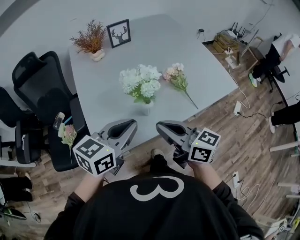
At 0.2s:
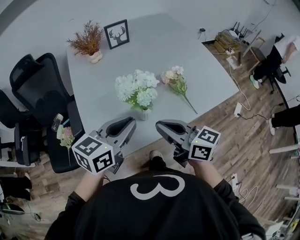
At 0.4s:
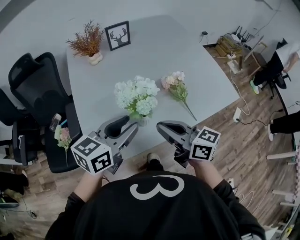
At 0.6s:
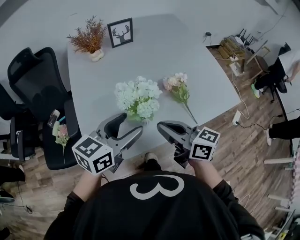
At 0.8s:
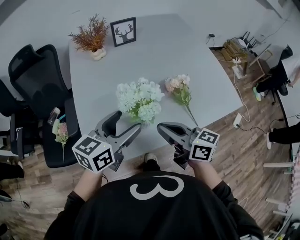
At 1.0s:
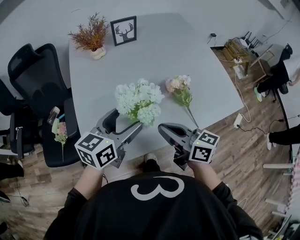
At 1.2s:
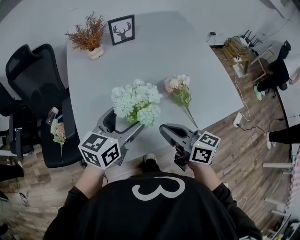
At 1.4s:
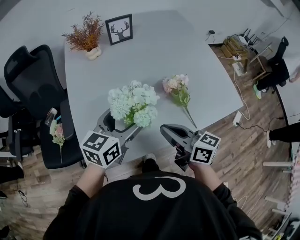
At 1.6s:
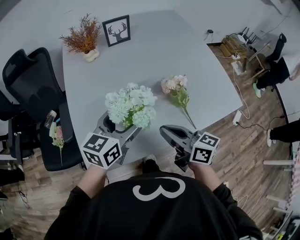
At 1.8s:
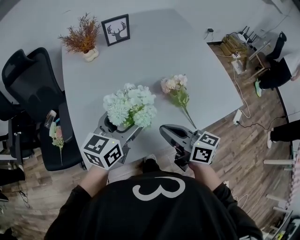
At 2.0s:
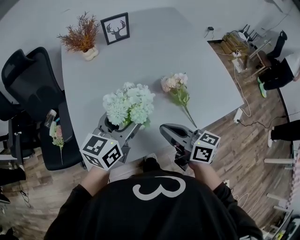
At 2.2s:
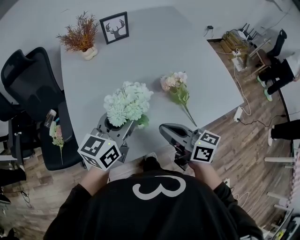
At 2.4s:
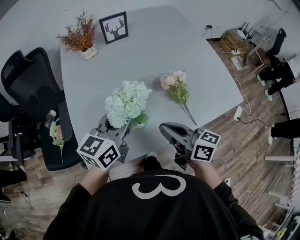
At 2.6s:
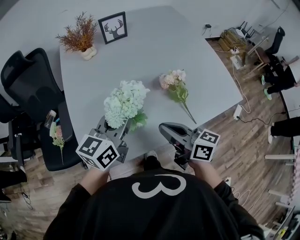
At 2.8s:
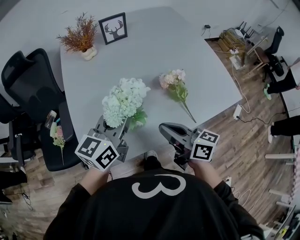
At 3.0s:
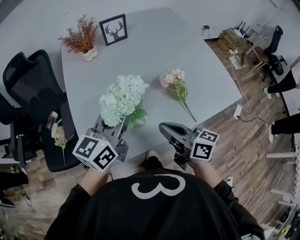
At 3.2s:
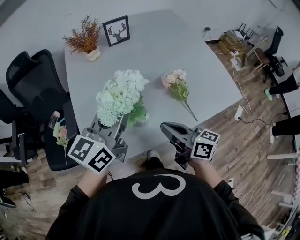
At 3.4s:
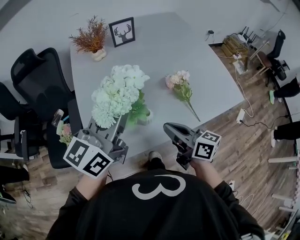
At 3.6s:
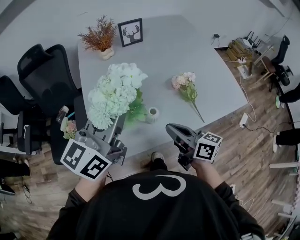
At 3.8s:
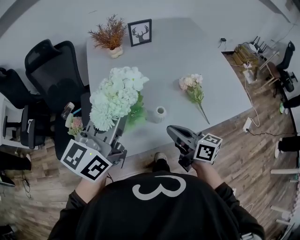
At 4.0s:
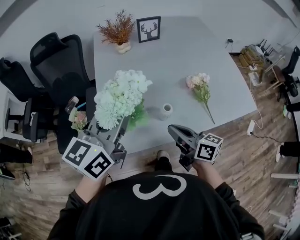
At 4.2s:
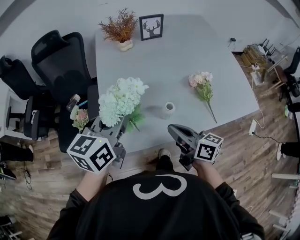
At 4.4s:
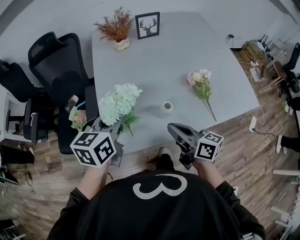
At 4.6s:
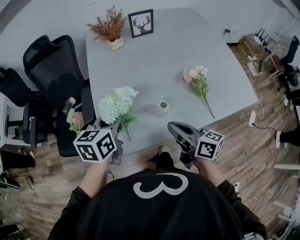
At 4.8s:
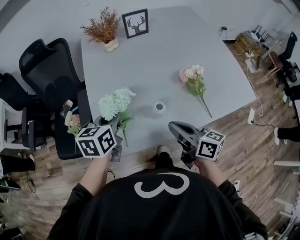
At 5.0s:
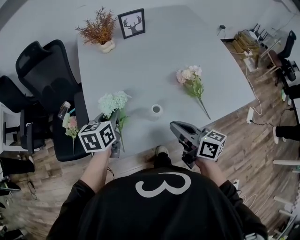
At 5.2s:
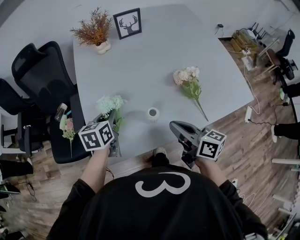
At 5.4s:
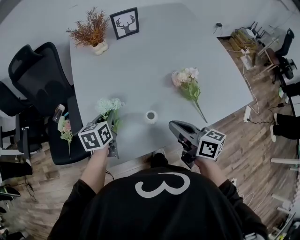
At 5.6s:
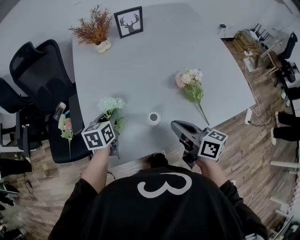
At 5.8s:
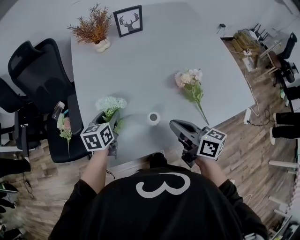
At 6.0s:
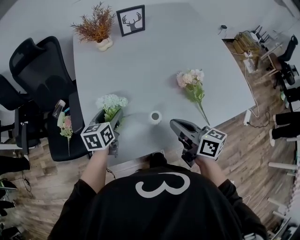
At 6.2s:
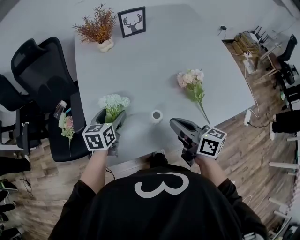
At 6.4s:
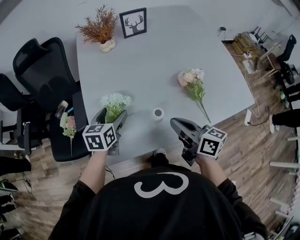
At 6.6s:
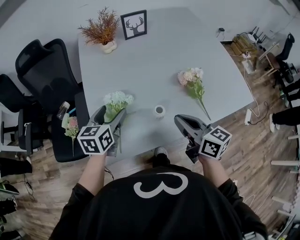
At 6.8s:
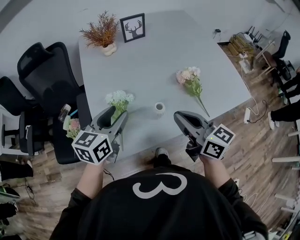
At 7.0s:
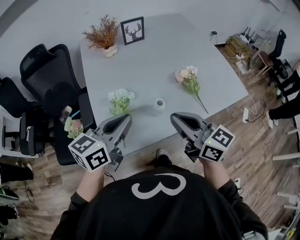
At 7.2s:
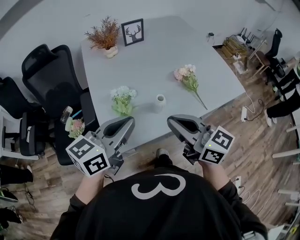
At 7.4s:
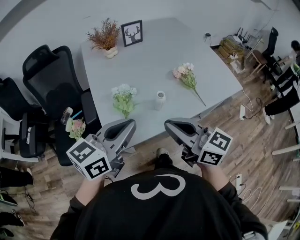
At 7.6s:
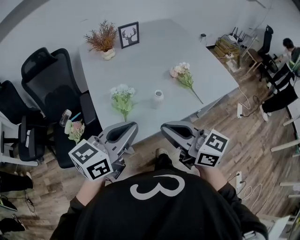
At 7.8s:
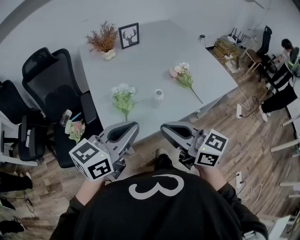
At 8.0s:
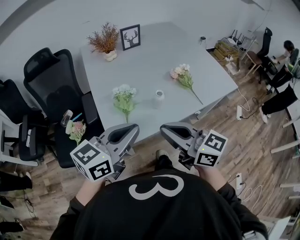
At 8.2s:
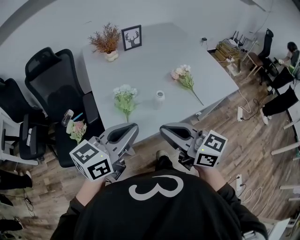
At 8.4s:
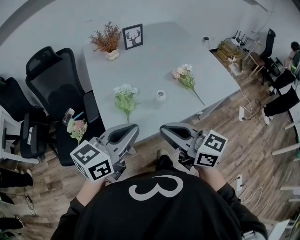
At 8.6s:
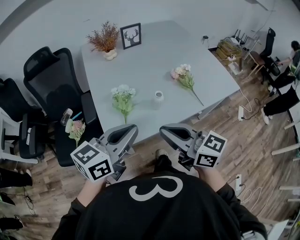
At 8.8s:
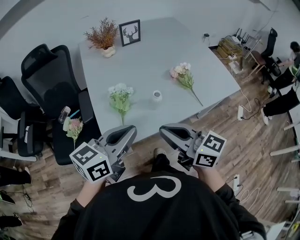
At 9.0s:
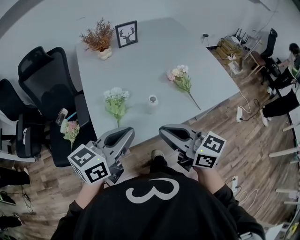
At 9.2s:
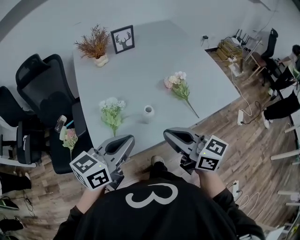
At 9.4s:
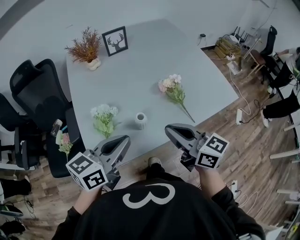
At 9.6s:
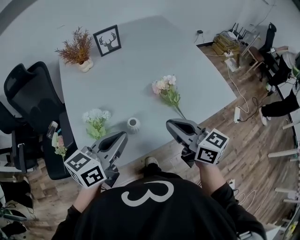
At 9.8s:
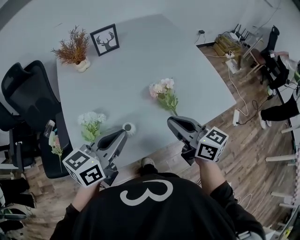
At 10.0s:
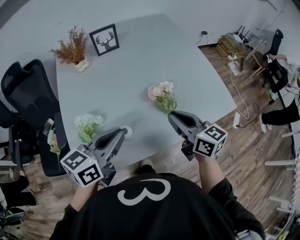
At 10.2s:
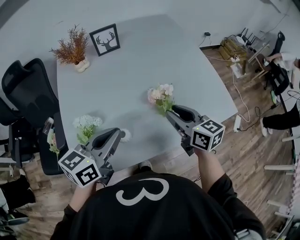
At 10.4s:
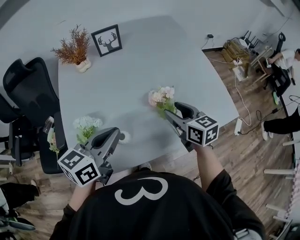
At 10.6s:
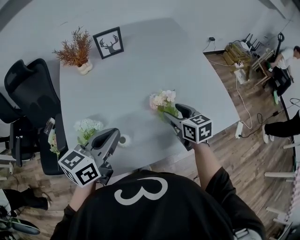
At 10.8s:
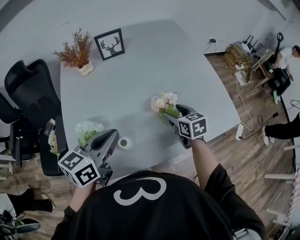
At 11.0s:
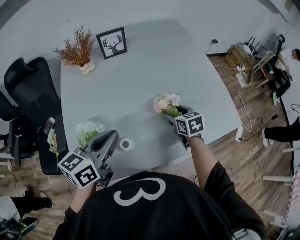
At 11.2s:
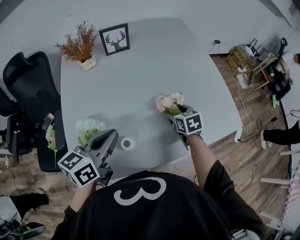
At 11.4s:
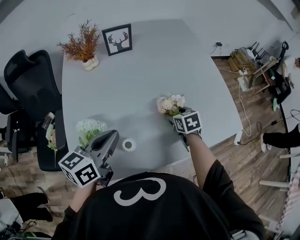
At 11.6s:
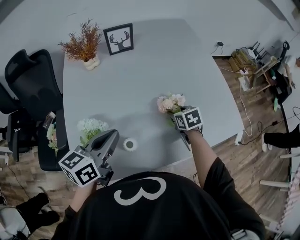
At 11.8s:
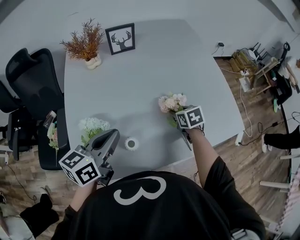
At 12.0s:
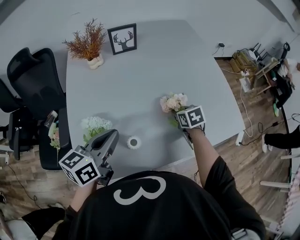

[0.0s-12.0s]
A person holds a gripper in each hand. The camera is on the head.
0.0s to 1.6s: The left gripper moves forward, roughly 15 cm, and opens up, while the right gripper travels forward, to the right and downward by roughly 15 cm.
1.6s to 3.0s: The left gripper is displaced upward by some 5 cm, and closes up.
3.0s to 4.4s: The right gripper moves to the left, roughly 5 cm. Meanwhile the left gripper moves to the left, some 15 cm, and changes its angle by roughly 20 degrees.
4.4s to 6.0s: The left gripper heads downward and forward, covering some 20 cm, and opens. The right gripper goes some 5 cm to the right.
6.0s to 7.6s: The left gripper shifts about 30 cm backward and upward, changes its angle by about 50 degrees, and closes its fingers. Meanwhile the right gripper travels backward, upward and to the left by about 25 cm, and turns by some 30 degrees.
7.6s to 9.0s: The grippers stay close to where they were, moving slightly.
9.0s to 10.4s: The right gripper shifts approximately 35 cm forward and to the right, rotates approximately 20 degrees, and opens. Meanwhile the left gripper shifts some 20 cm forward and to the right.
10.4s to 12.0s: The right gripper travels downward and forward by approximately 15 cm, and tips its fingers downward by about 30 degrees, while the left gripper is displaced to the left by approximately 5 cm.

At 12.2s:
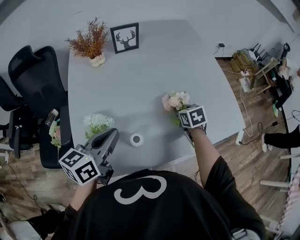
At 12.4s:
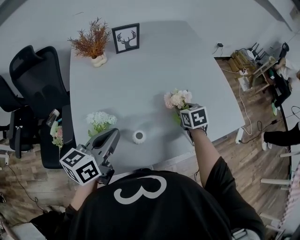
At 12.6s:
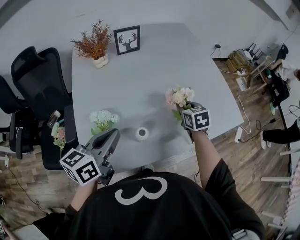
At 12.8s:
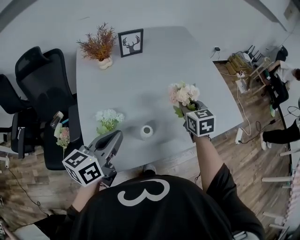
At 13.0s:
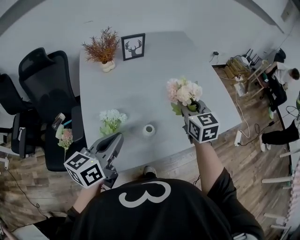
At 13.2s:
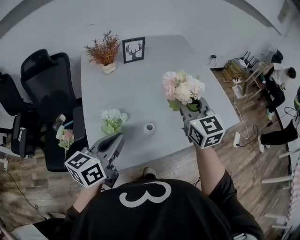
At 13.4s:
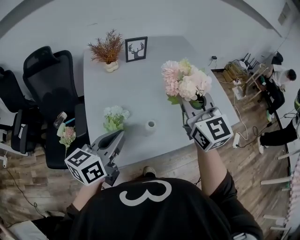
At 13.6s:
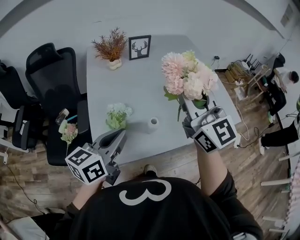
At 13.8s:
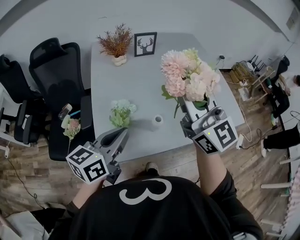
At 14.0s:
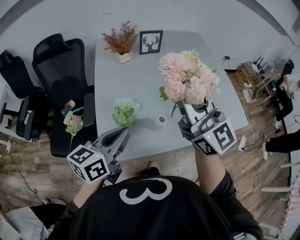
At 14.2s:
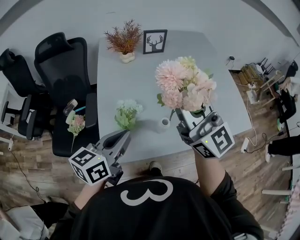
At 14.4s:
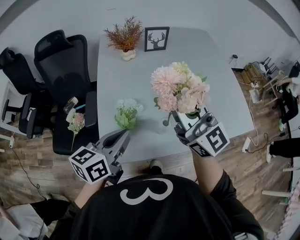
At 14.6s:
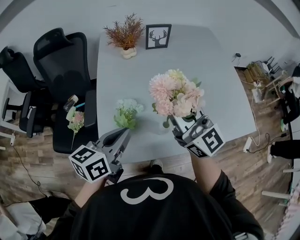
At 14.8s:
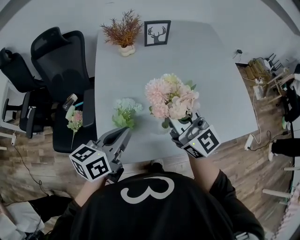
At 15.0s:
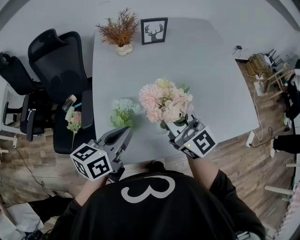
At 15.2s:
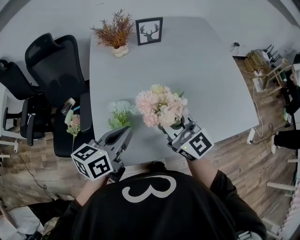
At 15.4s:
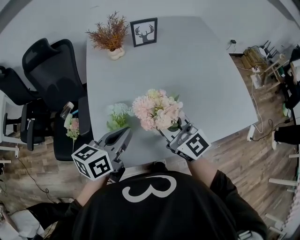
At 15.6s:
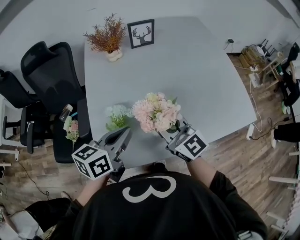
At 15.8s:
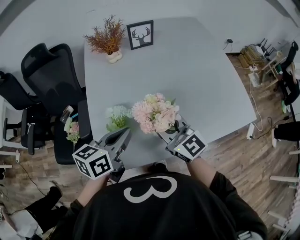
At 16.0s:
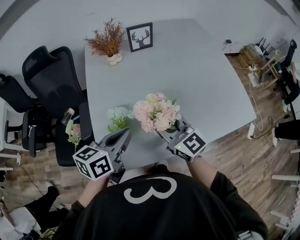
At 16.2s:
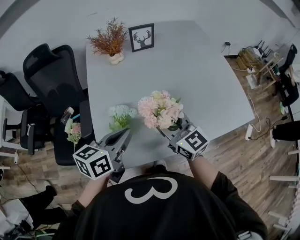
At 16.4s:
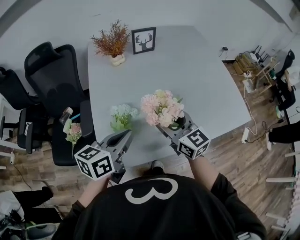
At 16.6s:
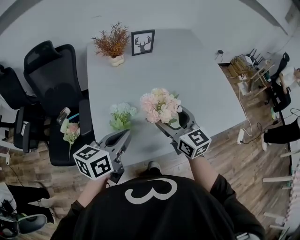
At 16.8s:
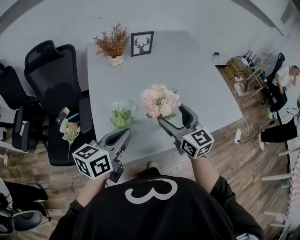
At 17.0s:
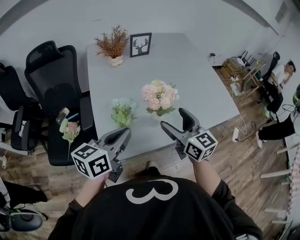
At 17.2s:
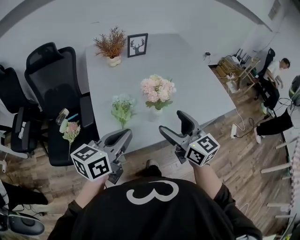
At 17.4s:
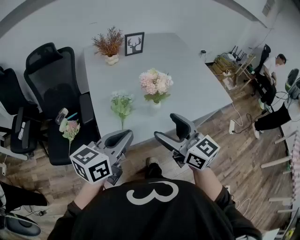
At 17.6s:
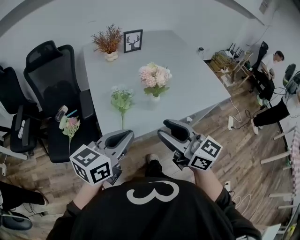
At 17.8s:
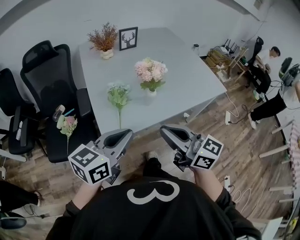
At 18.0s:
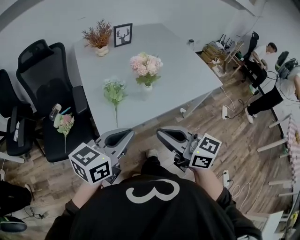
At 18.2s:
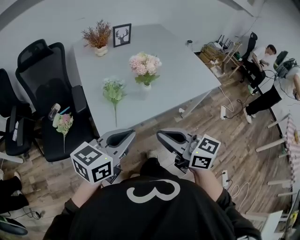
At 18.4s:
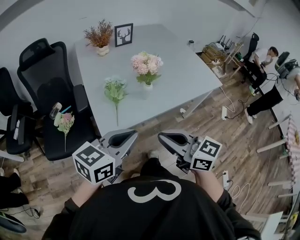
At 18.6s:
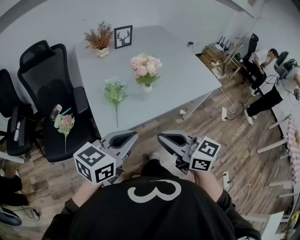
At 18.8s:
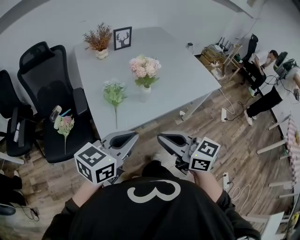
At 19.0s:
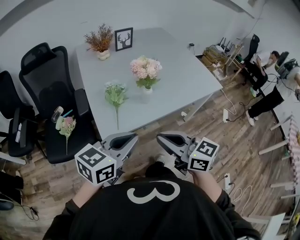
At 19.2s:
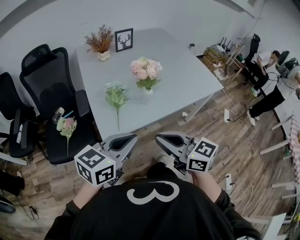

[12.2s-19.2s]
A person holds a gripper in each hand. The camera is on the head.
12.2s to 13.6s: The left gripper moves backward and upward, roughly 15 cm. Meanwhile the right gripper heads upward and backward, covering about 40 cm, and tilts its fingers approximately 60 degrees upward.
13.6s to 15.0s: The right gripper moves downward and to the left, some 15 cm, and turns by about 20 degrees. The left gripper heads downward, covering roughly 5 cm.
15.0s to 16.4s: The right gripper travels downward by some 5 cm, changes its angle by about 20 degrees, and opens up.
16.4s to 17.8s: Both grippers move backward, roughly 25 cm. The right gripper closes up. The left gripper swivels approximately 20 degrees.
17.8s to 19.2s: The grippers move only a little.

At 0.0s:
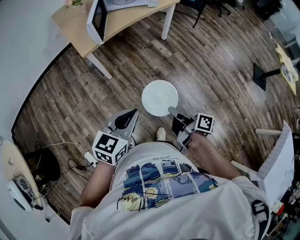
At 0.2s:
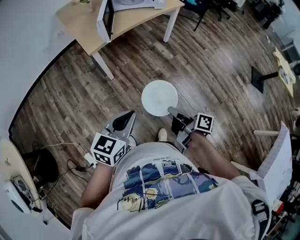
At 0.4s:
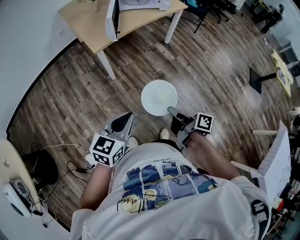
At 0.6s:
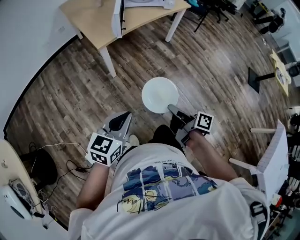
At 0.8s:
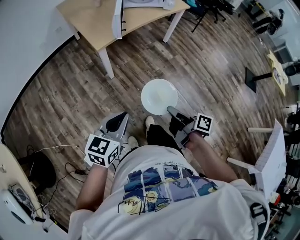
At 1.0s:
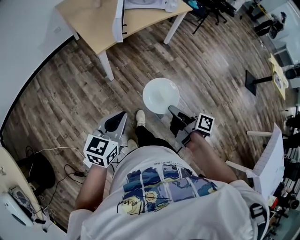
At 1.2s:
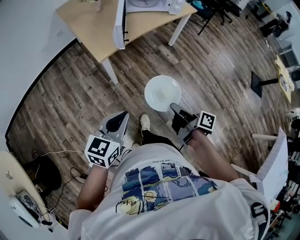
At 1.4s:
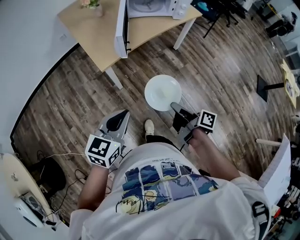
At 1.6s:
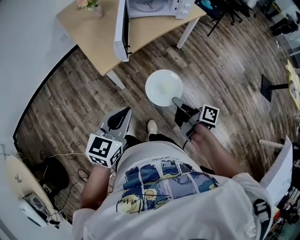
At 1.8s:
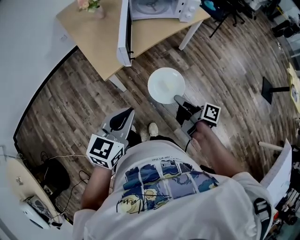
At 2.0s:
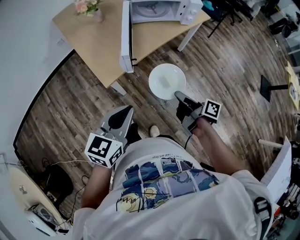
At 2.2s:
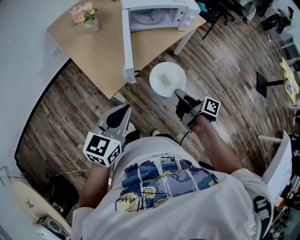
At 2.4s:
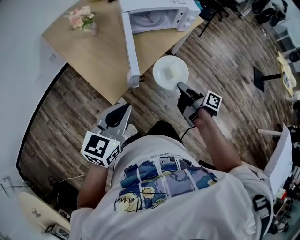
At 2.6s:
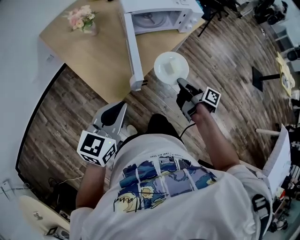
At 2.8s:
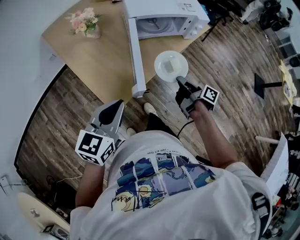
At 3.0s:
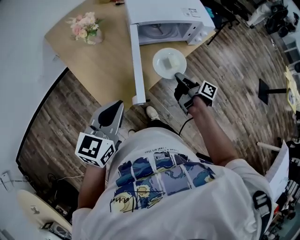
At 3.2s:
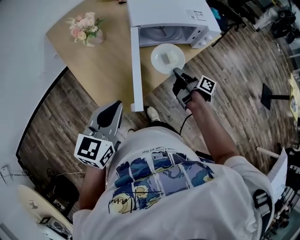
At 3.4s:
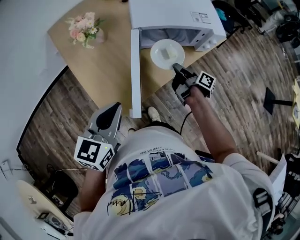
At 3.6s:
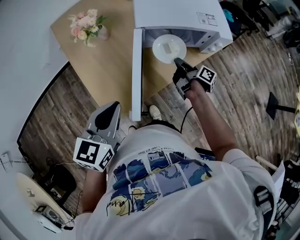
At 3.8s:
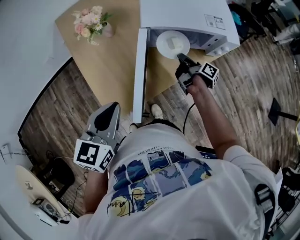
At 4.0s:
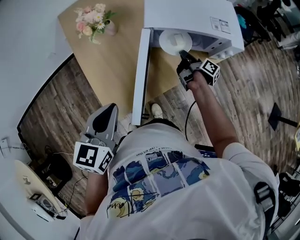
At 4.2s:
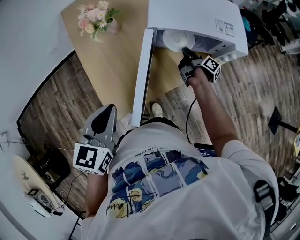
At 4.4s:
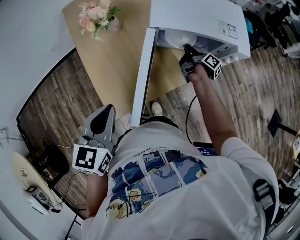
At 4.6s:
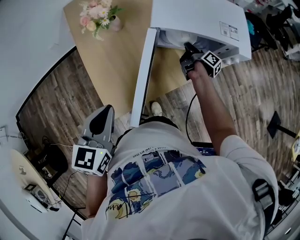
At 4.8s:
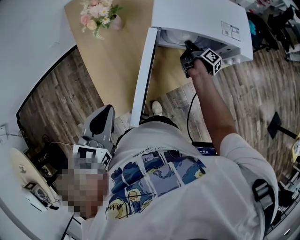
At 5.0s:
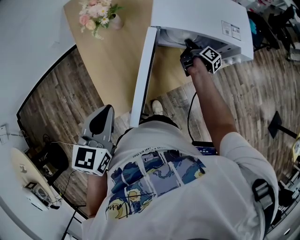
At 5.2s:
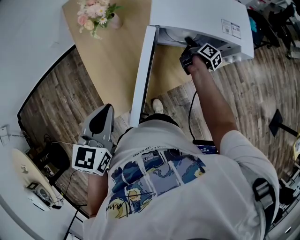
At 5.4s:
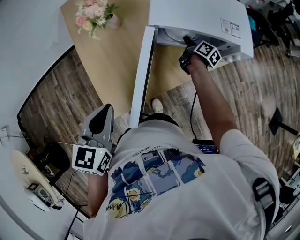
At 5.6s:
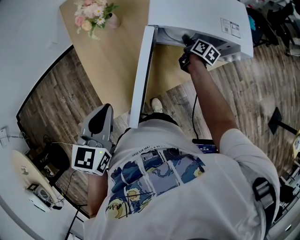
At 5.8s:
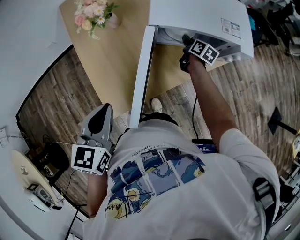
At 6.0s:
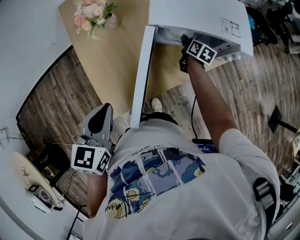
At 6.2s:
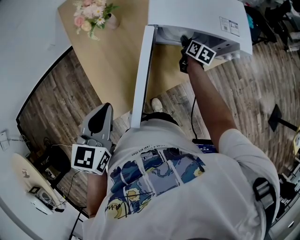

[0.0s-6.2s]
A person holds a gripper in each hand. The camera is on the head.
0.0s to 1.6s: Both grippers travel together forward and to the left, roughly 30 cm.
1.6s to 3.2s: Both grippers move forward, approximately 35 cm.
3.2s to 4.6s: The right gripper is displaced forward by approximately 20 cm. The left gripper rotates approximately 20 degrees.
4.6s to 6.2s: The right gripper rotates around the line of its fingers by roughly 50 degrees, counterclockwise from behind, and opens up.
